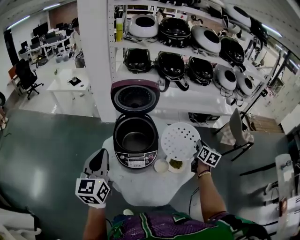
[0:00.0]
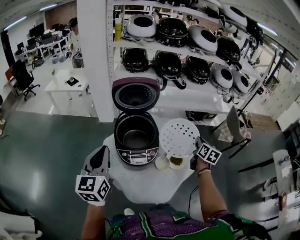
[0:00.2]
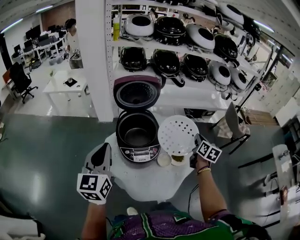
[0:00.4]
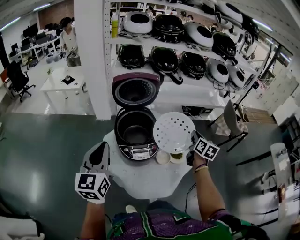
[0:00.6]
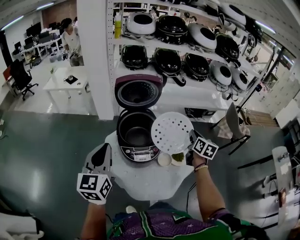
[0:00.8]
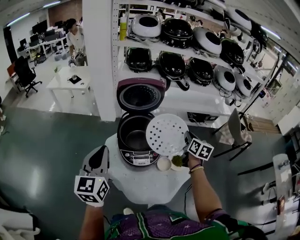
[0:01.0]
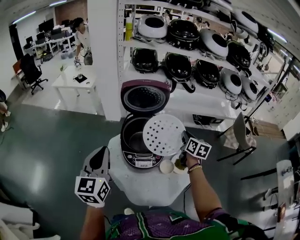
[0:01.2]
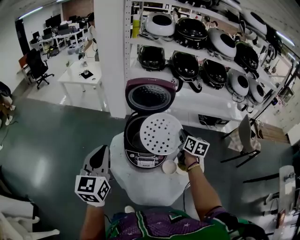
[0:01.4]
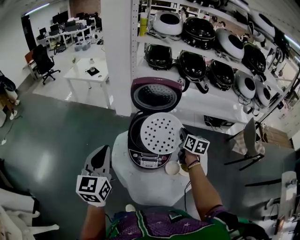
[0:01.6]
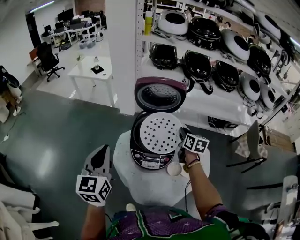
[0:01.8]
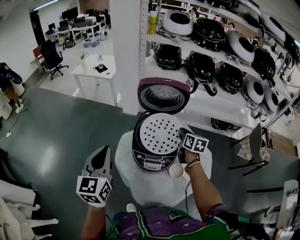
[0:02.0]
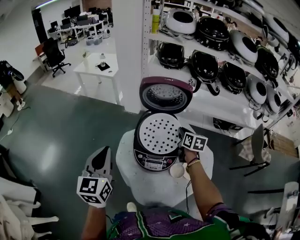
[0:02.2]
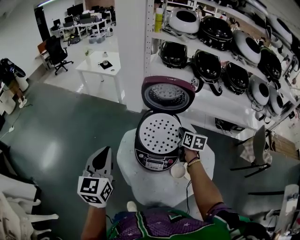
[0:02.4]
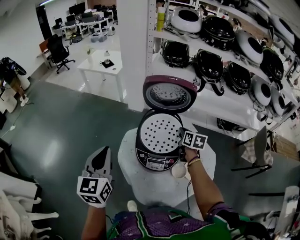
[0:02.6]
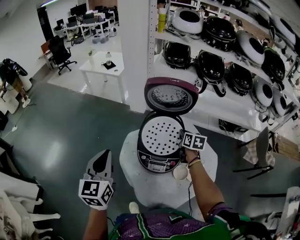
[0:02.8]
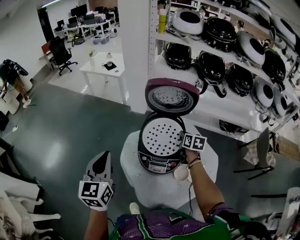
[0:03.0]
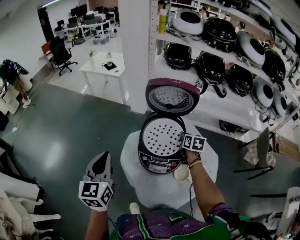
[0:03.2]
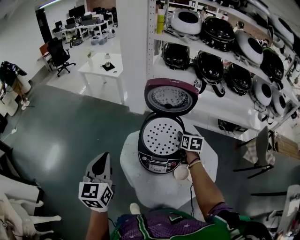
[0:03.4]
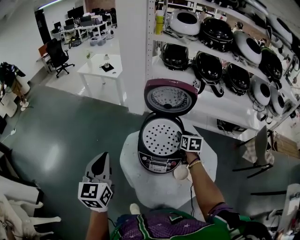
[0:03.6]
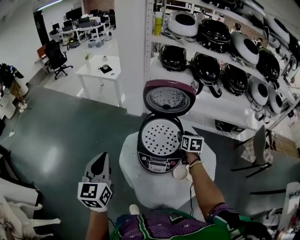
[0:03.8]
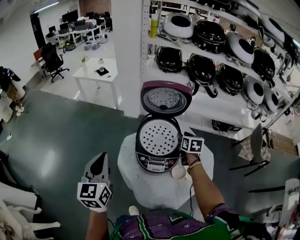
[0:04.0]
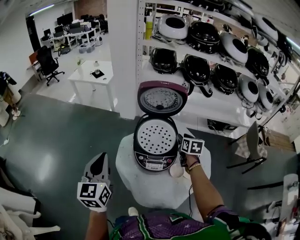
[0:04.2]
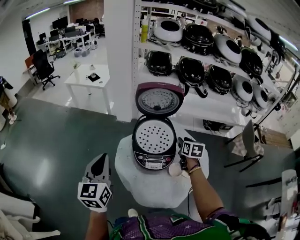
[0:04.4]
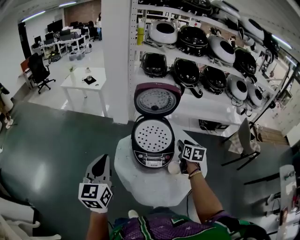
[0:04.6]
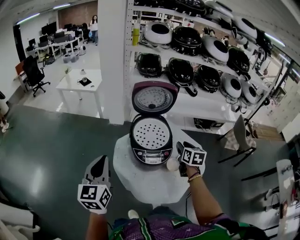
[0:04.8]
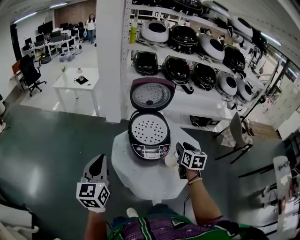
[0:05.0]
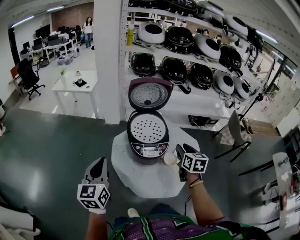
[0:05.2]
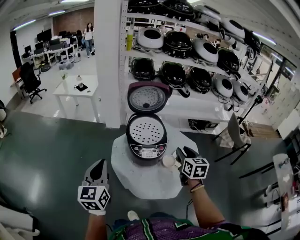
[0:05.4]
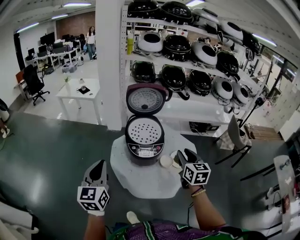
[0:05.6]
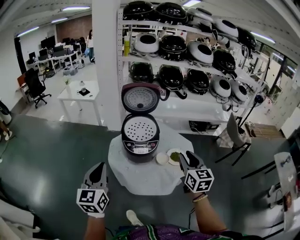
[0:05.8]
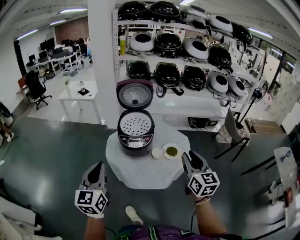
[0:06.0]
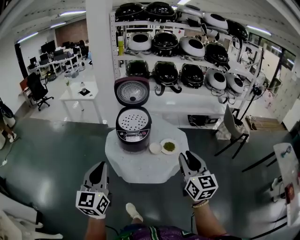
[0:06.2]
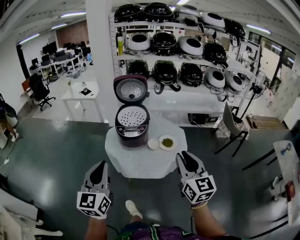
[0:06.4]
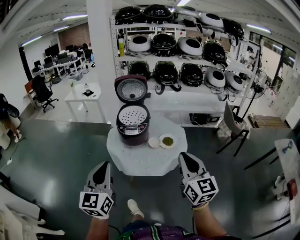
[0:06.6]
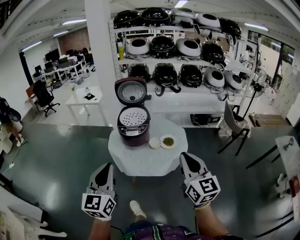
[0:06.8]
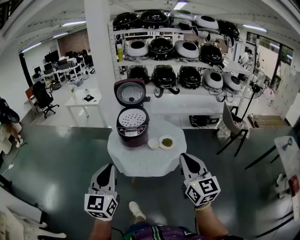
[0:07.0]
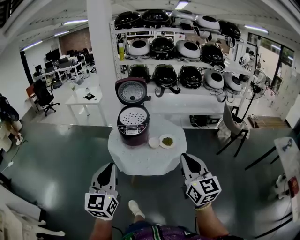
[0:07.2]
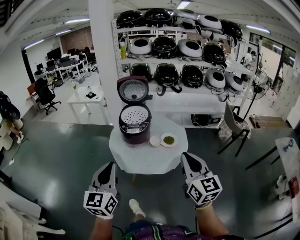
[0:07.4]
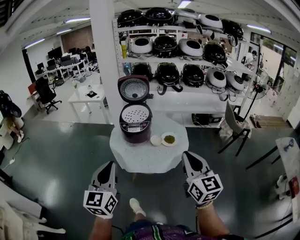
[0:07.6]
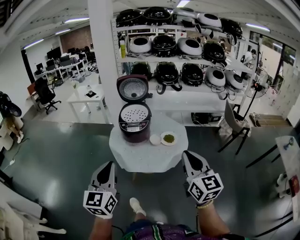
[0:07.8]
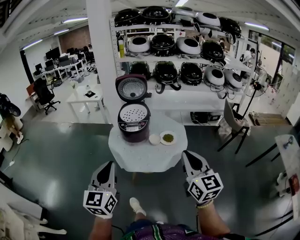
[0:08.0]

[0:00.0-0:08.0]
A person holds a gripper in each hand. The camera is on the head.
0:00.0 to 0:01.6: The right gripper heads to the left, covering about 20 cm, and changes its angle by about 20 degrees.
0:01.6 to 0:03.2: The right gripper goes approximately 10 cm downward, forward and to the left.
0:03.2 to 0:04.8: The left gripper goes some 5 cm backward. Meanwhile the right gripper moves backward and upward, some 20 cm.
0:04.8 to 0:06.4: The left gripper moves backward and to the right, approximately 35 cm; the right gripper moves backward and upward, approximately 40 cm, and swivels about 30 degrees.
0:06.4 to 0:08.0: The grippers both shift backward by about 5 cm.

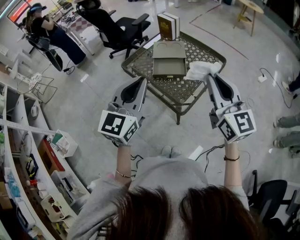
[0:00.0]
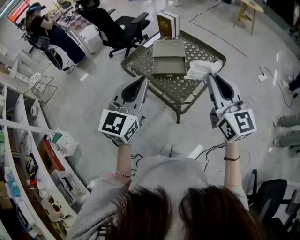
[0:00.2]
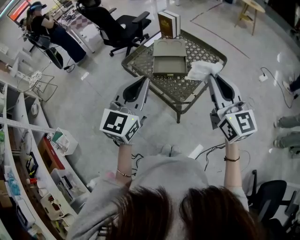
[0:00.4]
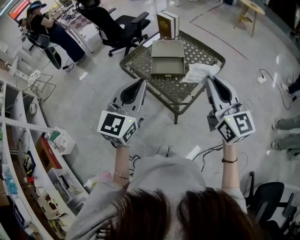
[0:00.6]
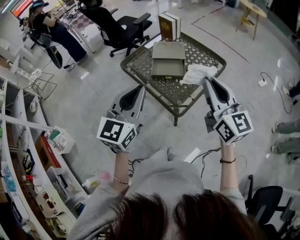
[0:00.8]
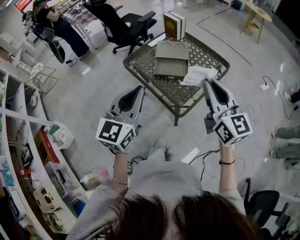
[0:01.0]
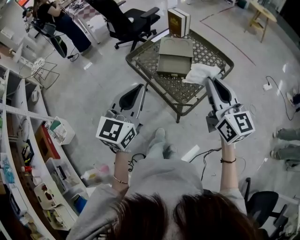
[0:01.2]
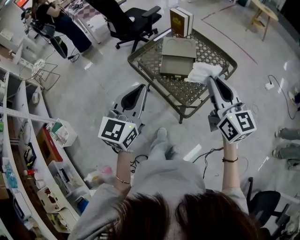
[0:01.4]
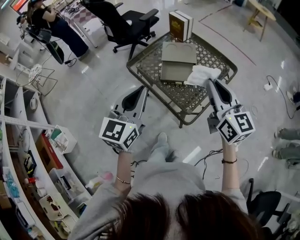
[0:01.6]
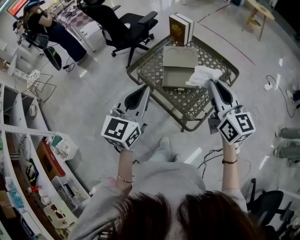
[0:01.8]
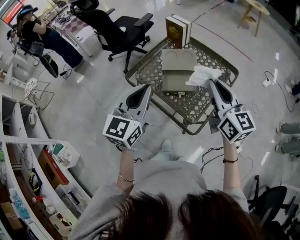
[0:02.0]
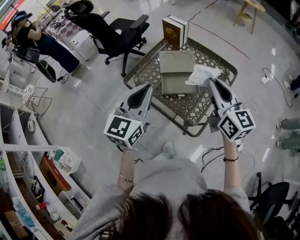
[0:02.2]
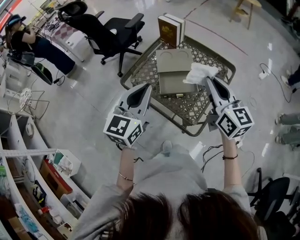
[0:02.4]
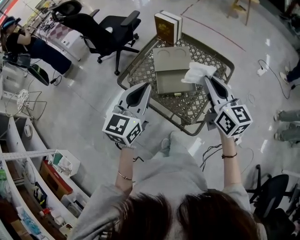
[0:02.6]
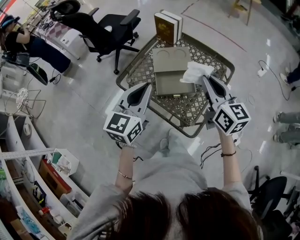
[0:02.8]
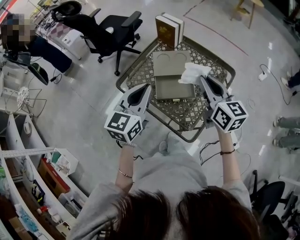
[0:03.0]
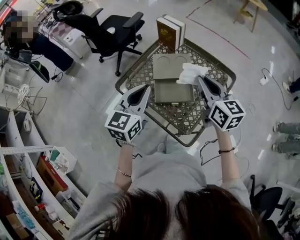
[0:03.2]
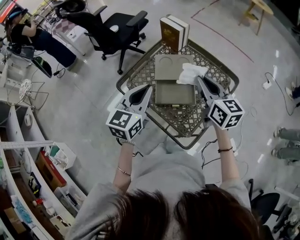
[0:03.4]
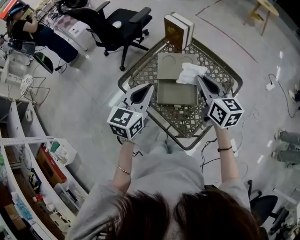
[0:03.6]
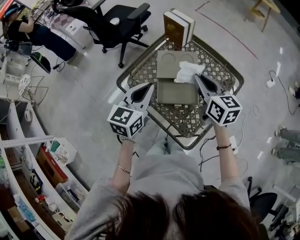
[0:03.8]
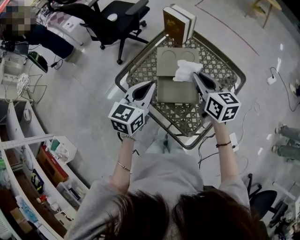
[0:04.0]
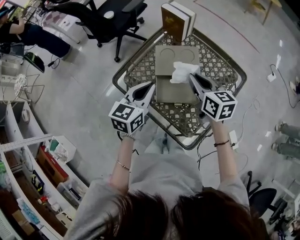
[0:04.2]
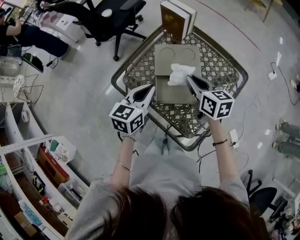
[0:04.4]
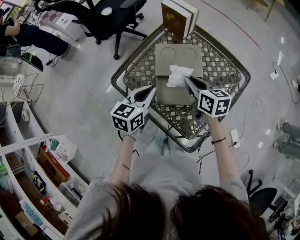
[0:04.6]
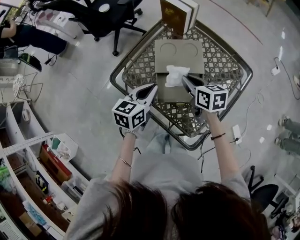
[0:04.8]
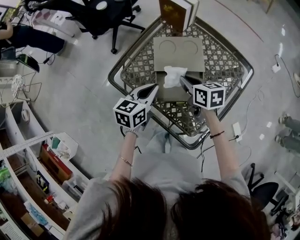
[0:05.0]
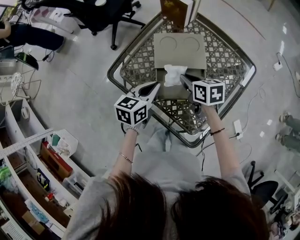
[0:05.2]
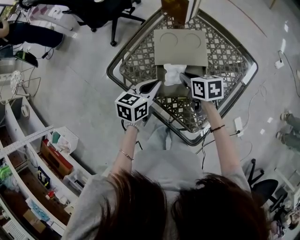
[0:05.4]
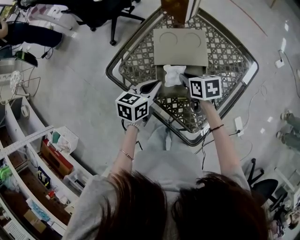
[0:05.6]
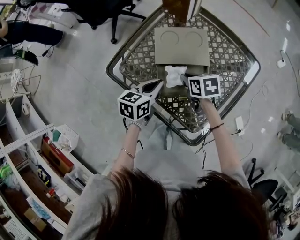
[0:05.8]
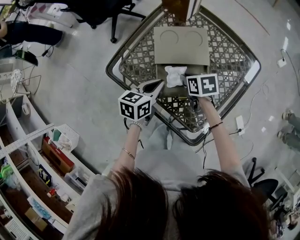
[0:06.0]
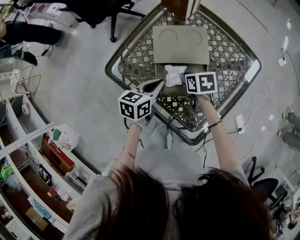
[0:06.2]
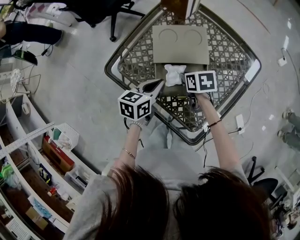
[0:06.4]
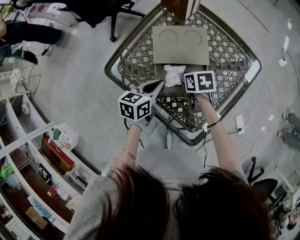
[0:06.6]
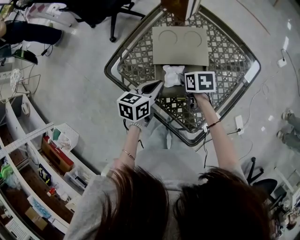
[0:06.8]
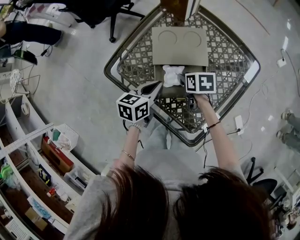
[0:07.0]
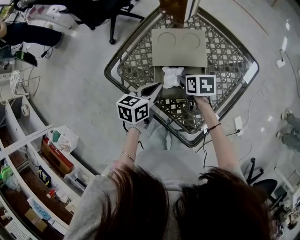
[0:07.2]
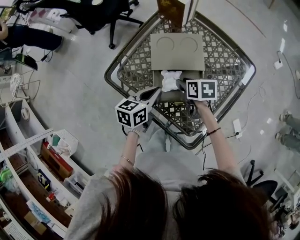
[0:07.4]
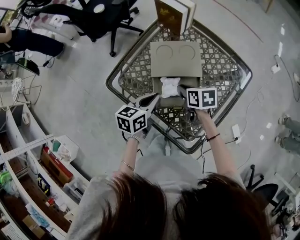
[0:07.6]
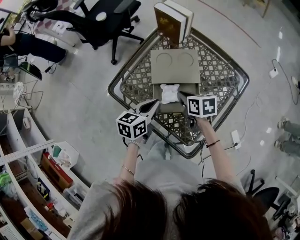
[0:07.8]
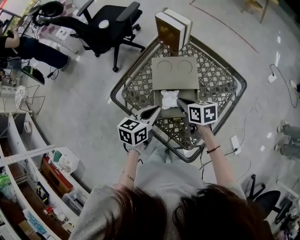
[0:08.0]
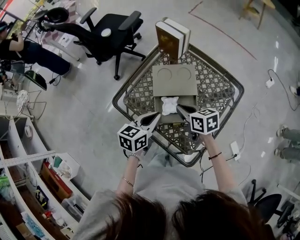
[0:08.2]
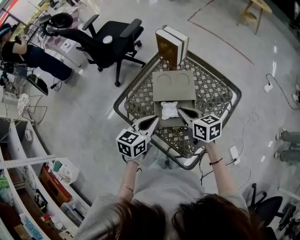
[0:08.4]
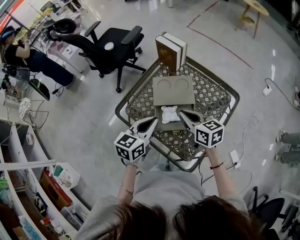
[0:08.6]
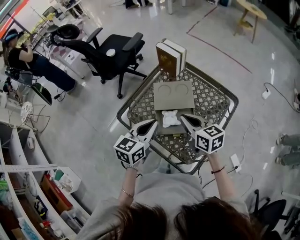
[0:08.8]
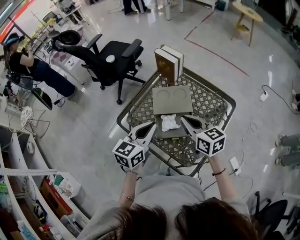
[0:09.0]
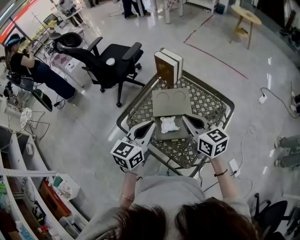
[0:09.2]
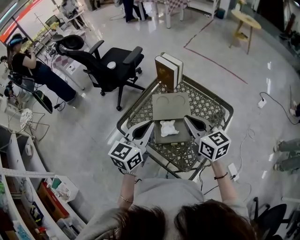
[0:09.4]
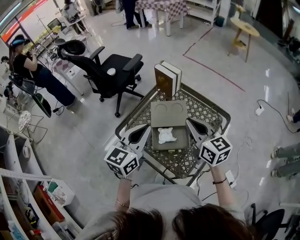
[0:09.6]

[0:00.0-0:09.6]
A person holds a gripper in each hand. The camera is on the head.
0:00.0 to 0:01.6: The grippers both shift forward and downward by about 10 cm.
0:01.6 to 0:03.2: The grippers both shift forward by roughly 20 cm.
0:03.2 to 0:04.8: The two grippers go approximately 20 cm downward and forward. The left gripper rotates approximately 20 degrees. Meanwhile the right gripper turns by roughly 30 degrees.
0:04.8 to 0:06.4: The left gripper moves downward, roughly 10 cm; the right gripper shifts about 10 cm downward, and swivels approximately 20 degrees.
0:06.4 to 0:08.0: The grippers both shift upward by about 10 cm. The right gripper opens, then closes again.
0:08.0 to 0:09.6: Both grippers move upward, about 25 cm. The right gripper tips its fingers upward by some 30 degrees. Meanwhile the left gripper turns by approximately 30 degrees.

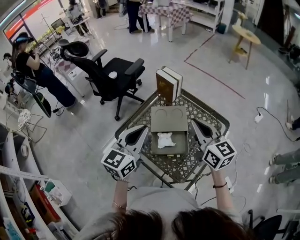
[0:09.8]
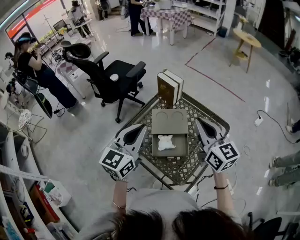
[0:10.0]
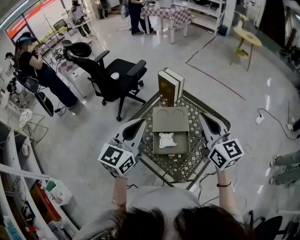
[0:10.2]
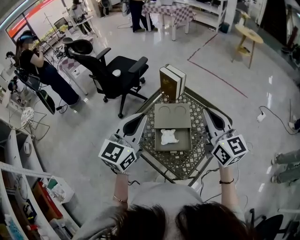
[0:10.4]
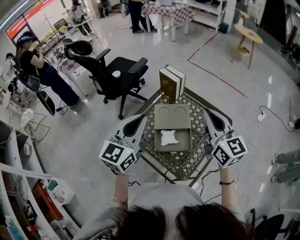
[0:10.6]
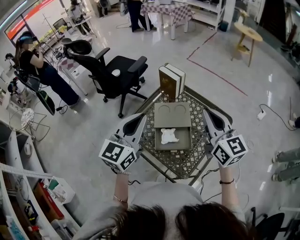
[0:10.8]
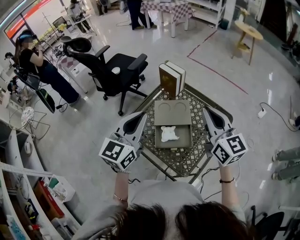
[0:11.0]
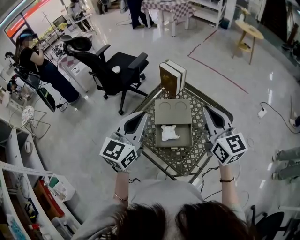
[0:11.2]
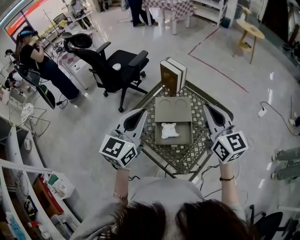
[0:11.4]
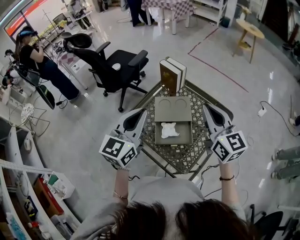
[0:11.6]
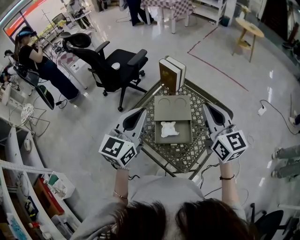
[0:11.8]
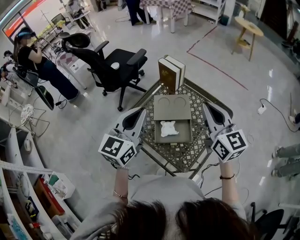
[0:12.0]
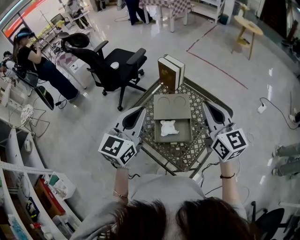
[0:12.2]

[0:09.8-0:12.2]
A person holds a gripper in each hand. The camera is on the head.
0:09.8 to 0:11.0: The right gripper travels upward by approximately 5 cm.
0:11.0 to 0:12.2: Both grippers stay about where they are.

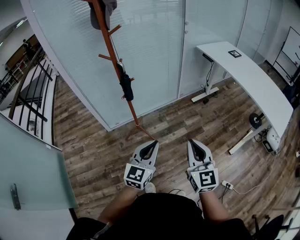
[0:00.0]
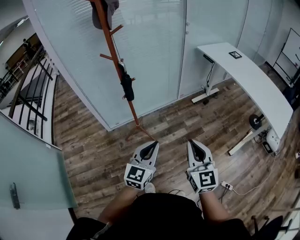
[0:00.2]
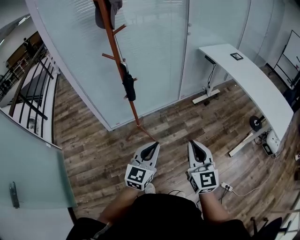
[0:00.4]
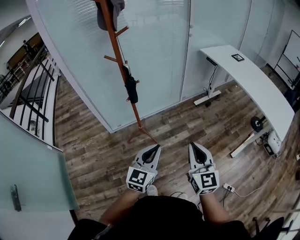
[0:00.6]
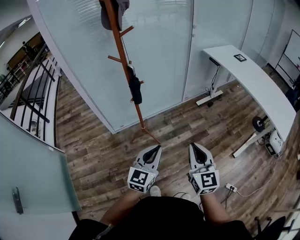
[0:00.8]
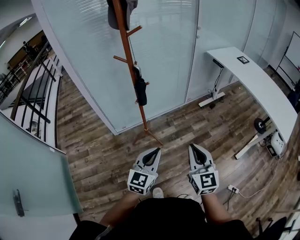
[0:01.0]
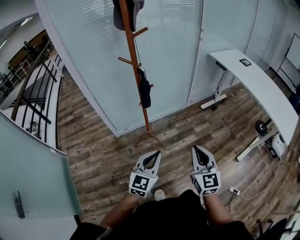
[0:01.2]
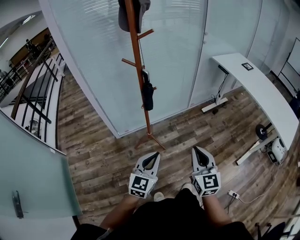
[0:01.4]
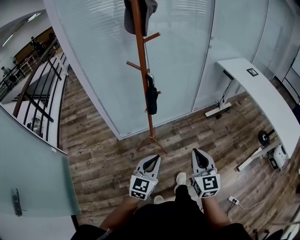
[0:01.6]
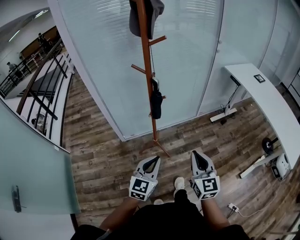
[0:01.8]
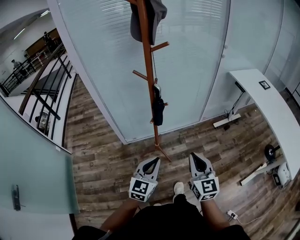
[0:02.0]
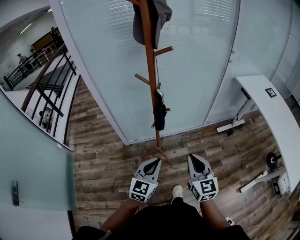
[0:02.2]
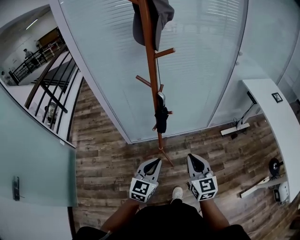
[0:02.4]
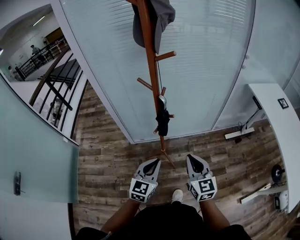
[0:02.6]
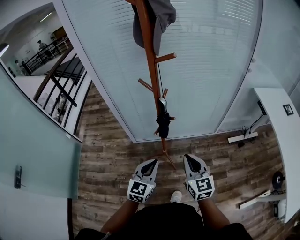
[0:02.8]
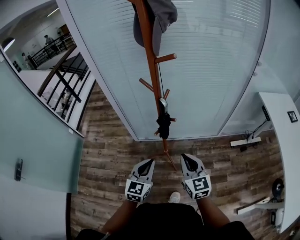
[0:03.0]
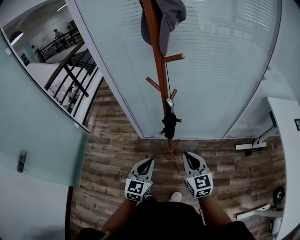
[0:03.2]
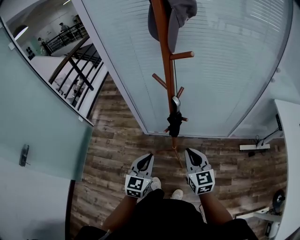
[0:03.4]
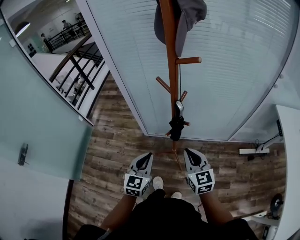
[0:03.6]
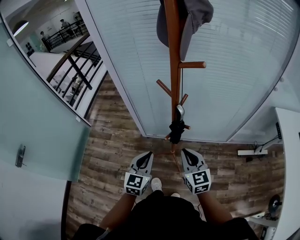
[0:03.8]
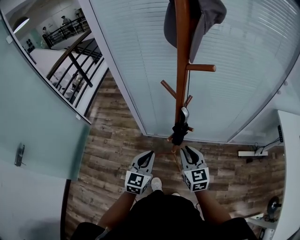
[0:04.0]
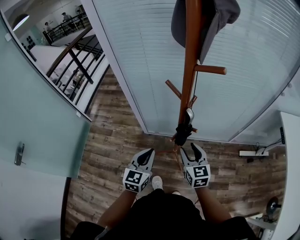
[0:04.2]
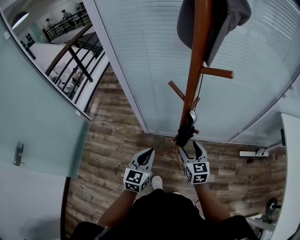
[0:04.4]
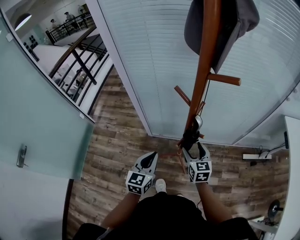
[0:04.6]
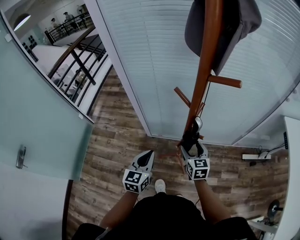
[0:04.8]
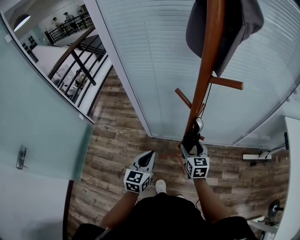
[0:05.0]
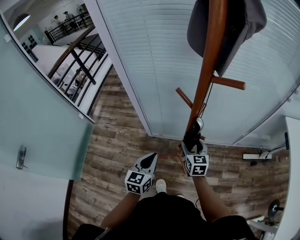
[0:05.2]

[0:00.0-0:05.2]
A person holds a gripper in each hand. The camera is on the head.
0:00.0 to 0:01.8: The left gripper heads to the left and forward, covering some 15 cm, while the right gripper goes some 15 cm to the left, forward and downward.
0:01.8 to 0:03.4: The left gripper ends up approximately 15 cm from where it was, and rotates approximately 30 degrees, while the right gripper shifts by about 25 cm, and swivels roughly 30 degrees.
0:03.4 to 0:05.2: The right gripper is displaced forward and downward by approximately 20 cm, and opens up. Meanwhile the left gripper moves forward and to the left, approximately 10 cm.
